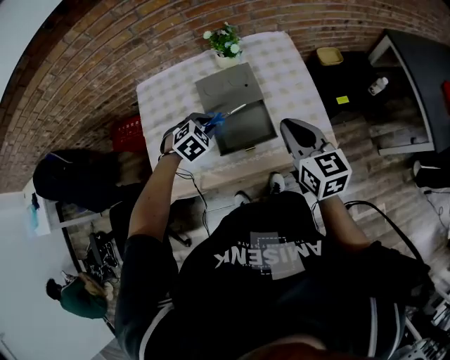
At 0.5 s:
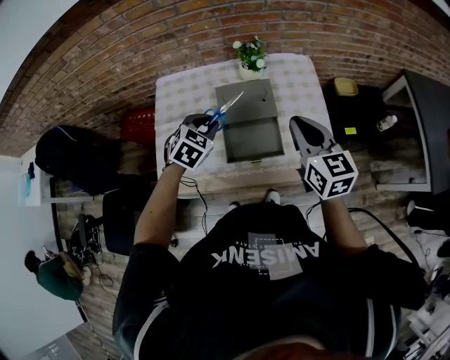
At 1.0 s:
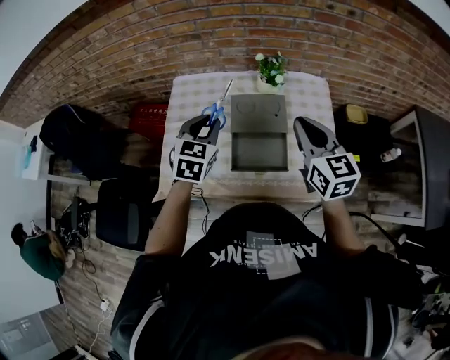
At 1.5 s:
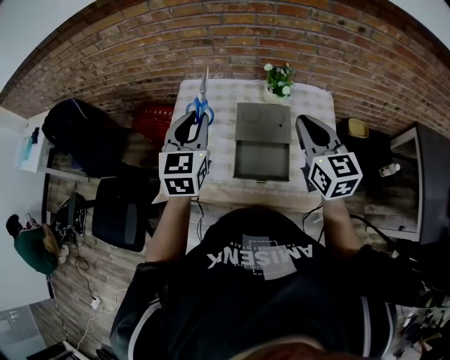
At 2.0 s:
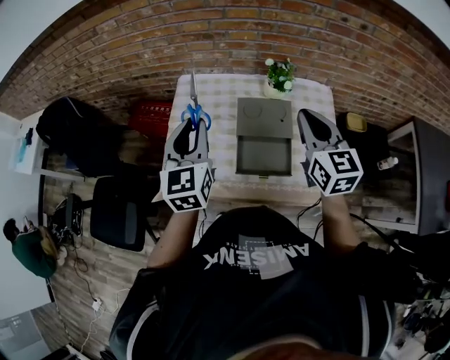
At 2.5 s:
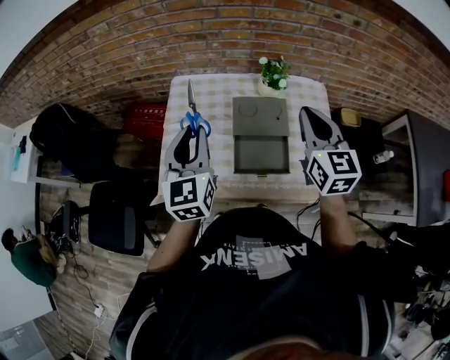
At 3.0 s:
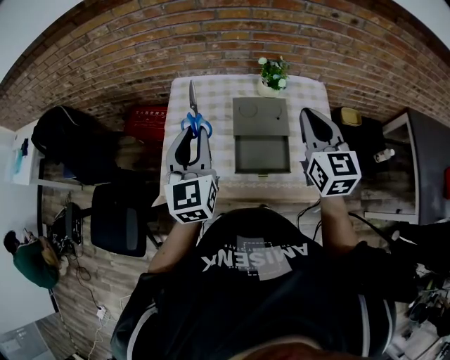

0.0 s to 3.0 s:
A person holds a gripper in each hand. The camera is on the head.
0.0 to 1.5 s: The right gripper shifts by some 15 cm. Meanwhile the left gripper moves upward, some 25 cm, and tilts its fingers roughly 50 degrees upward.
1.5 to 3.0 s: The left gripper ends up about 5 cm from where it was.

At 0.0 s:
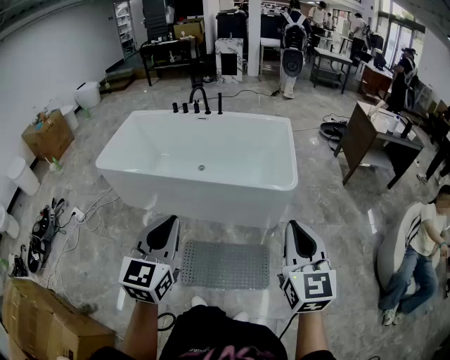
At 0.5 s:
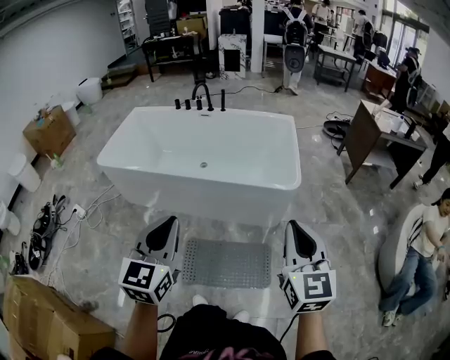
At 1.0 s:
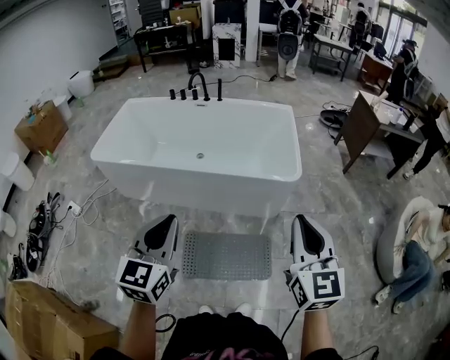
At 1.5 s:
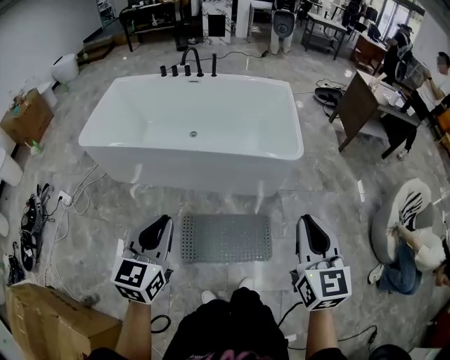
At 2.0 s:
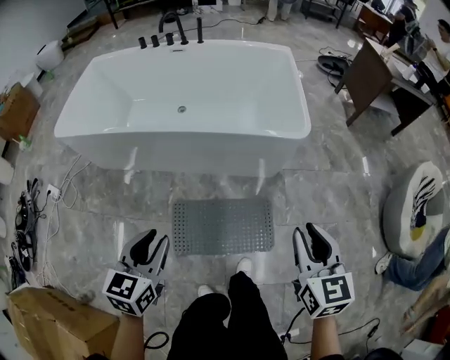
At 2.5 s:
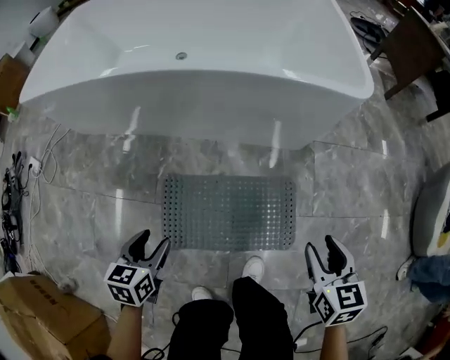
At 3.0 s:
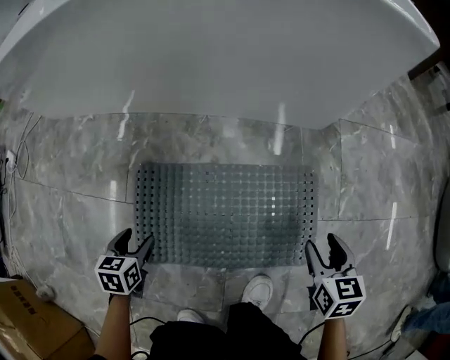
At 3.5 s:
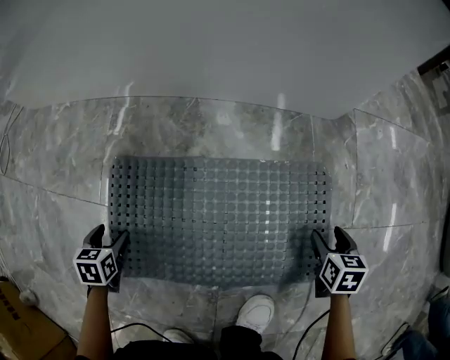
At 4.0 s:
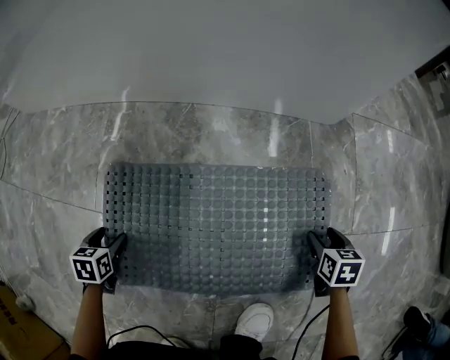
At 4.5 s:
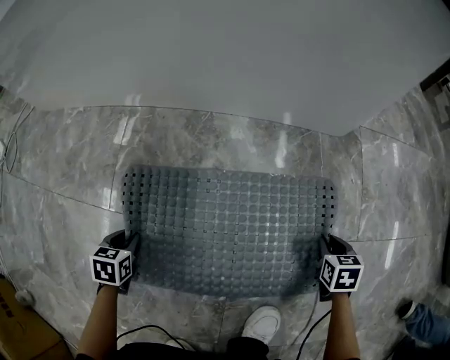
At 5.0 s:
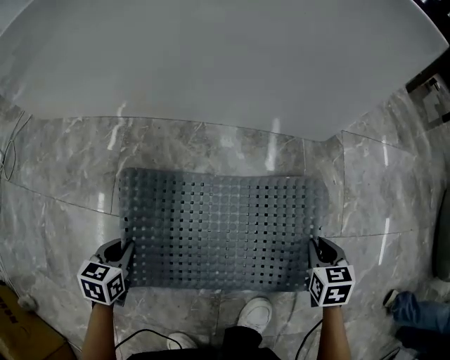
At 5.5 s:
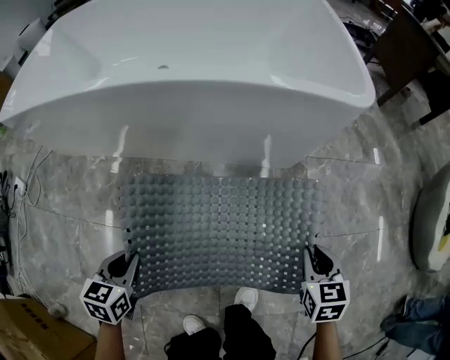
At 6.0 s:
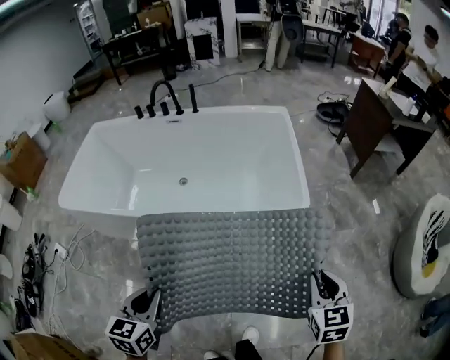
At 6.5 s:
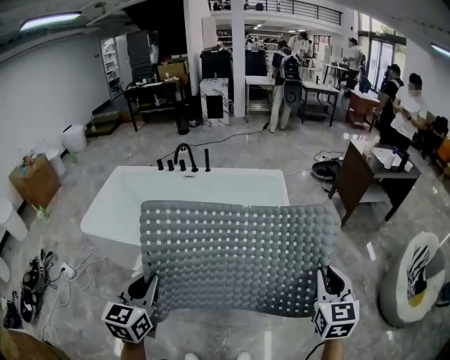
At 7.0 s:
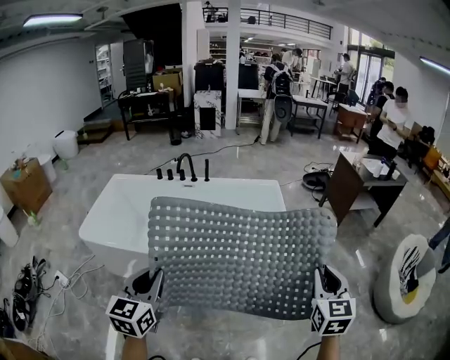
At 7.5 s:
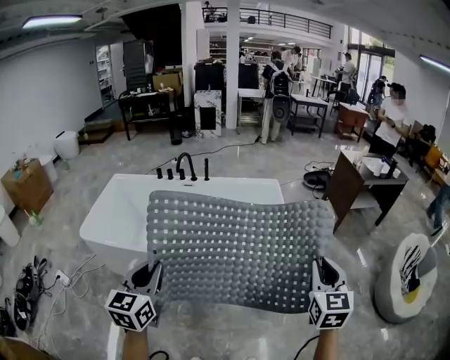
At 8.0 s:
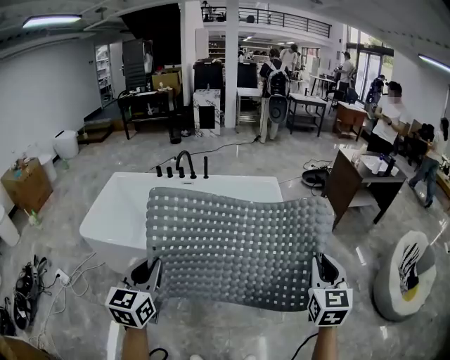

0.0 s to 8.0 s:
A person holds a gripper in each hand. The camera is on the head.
0.0 to 2.0 s: Both grippers move downward, some 25 cm. The left gripper swivels about 30 degrees. Meanwhile the right gripper swivels approximately 20 degrees.
2.0 to 4.0 s: Both grippers travel together downward, approximately 80 cm. The left gripper tips its fingers downward by some 40 degrees, and opens up. The right gripper tilts its fingers about 40 degrees downward, and opens up.
4.0 to 6.0 s: The grippers both shift upward by roughly 80 cm. The right gripper turns by approximately 30 degrees, and closes, while the left gripper angles its fingers upward, by roughly 30 degrees, and closes.
6.0 to 8.0 s: The two grippers go approximately 25 cm upward. The left gripper swivels approximately 30 degrees; the right gripper rotates roughly 30 degrees.

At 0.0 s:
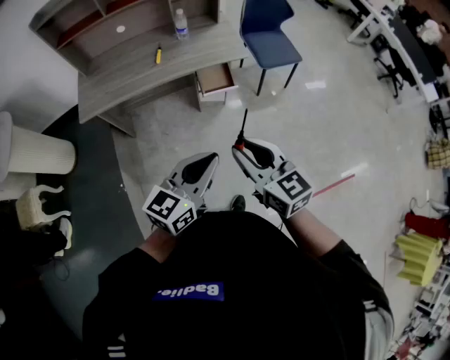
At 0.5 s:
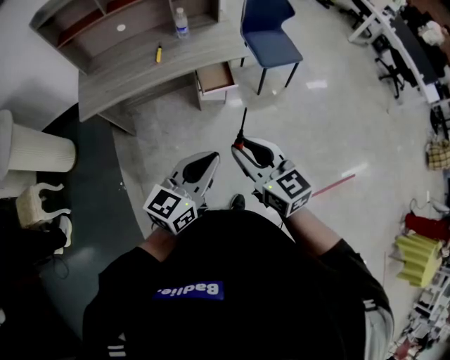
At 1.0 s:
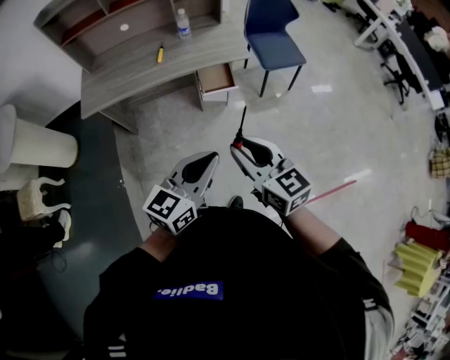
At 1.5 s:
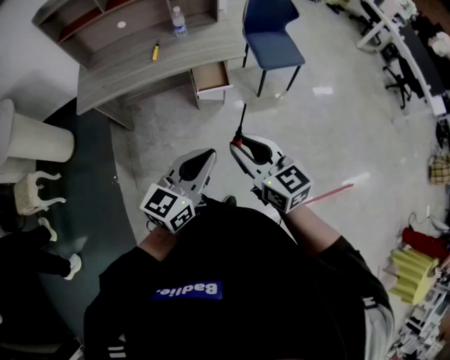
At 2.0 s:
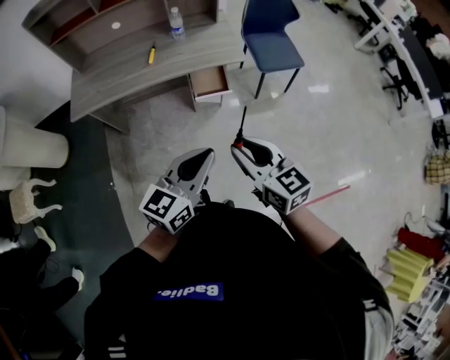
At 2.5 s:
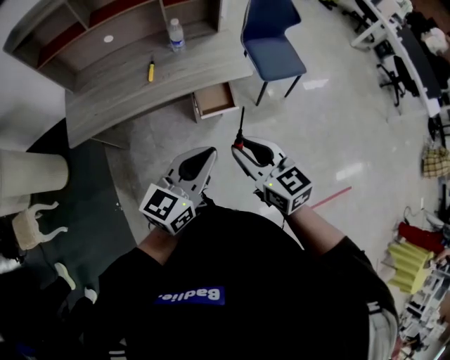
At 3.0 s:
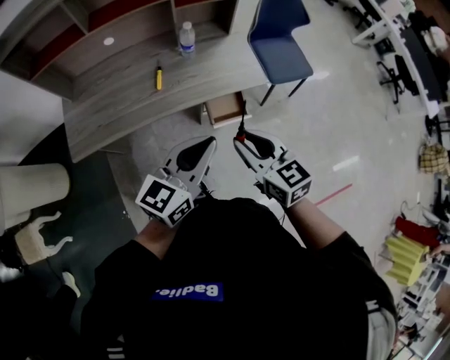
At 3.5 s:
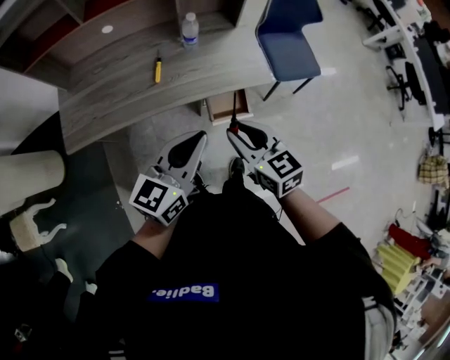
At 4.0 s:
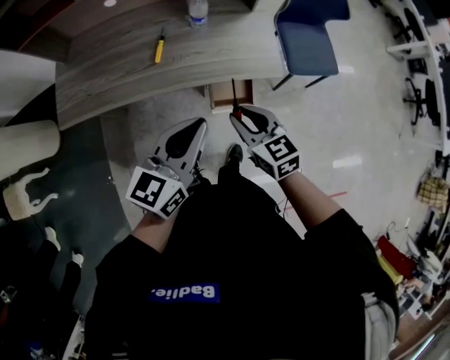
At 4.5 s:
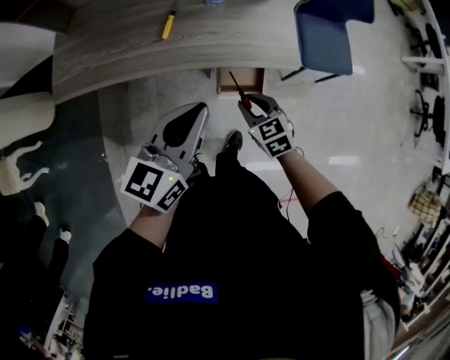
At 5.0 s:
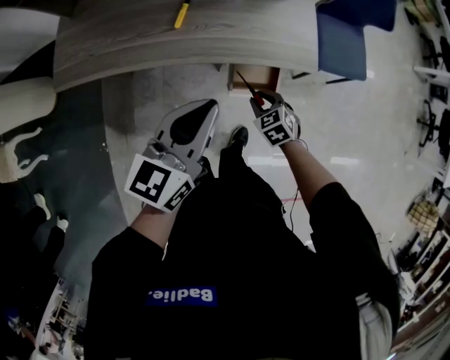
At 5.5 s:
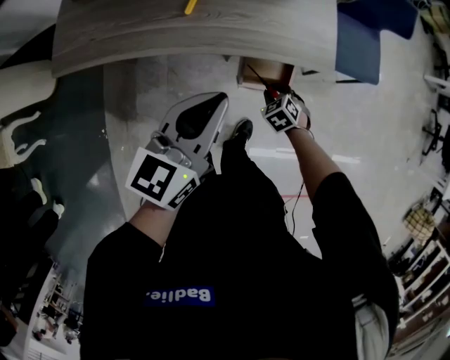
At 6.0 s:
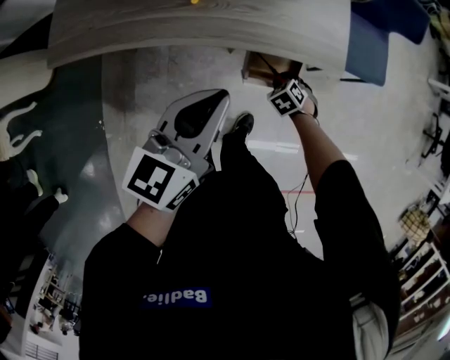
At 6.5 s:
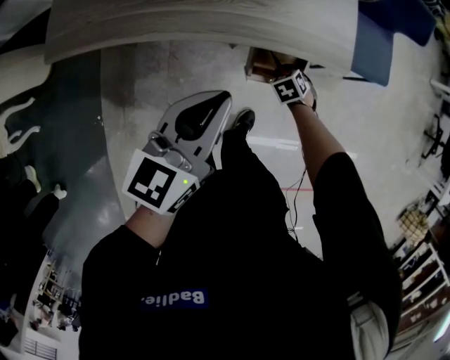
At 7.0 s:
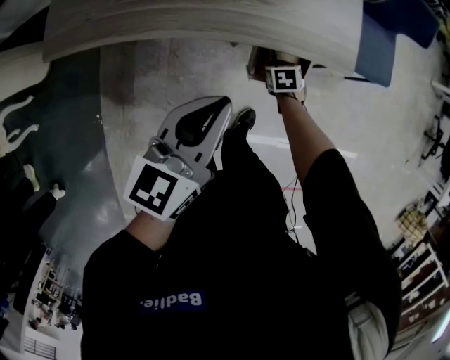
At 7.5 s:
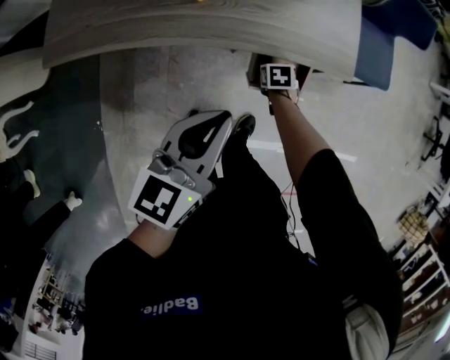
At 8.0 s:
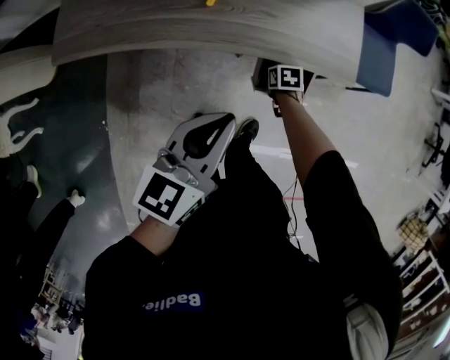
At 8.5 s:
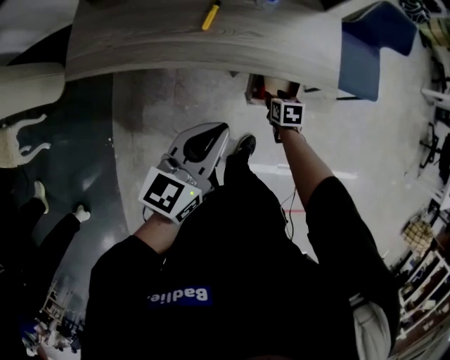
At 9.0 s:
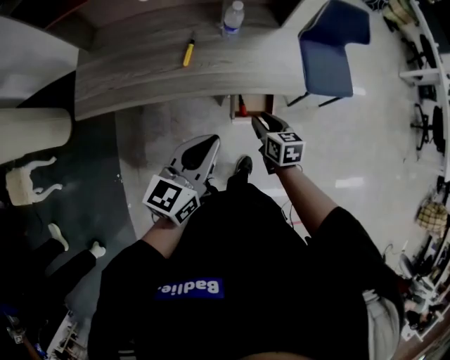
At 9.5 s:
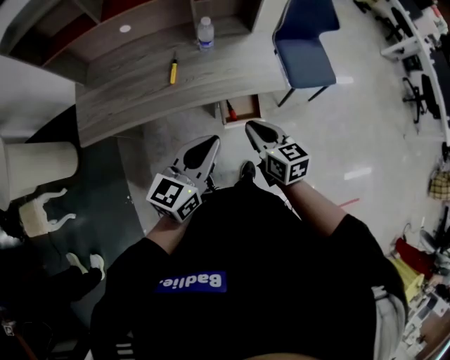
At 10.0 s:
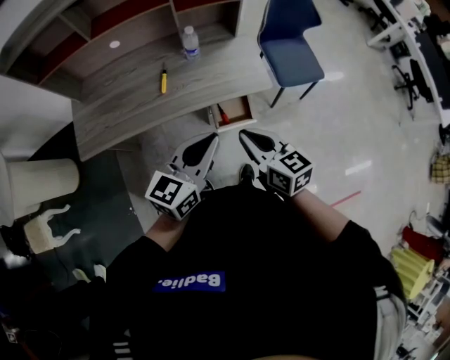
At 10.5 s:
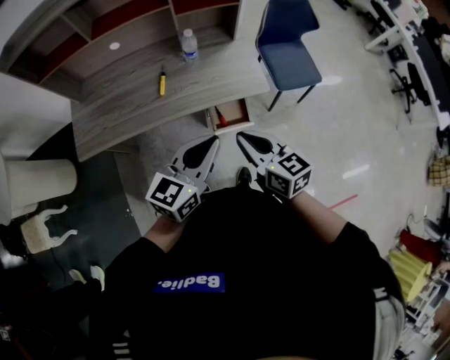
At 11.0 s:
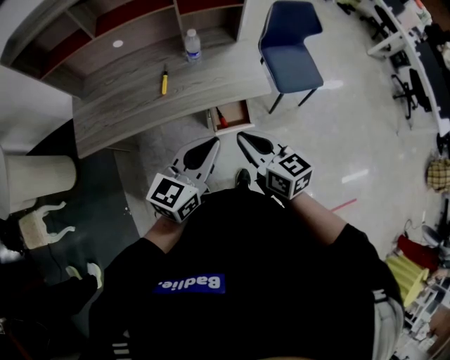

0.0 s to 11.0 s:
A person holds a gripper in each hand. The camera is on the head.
0.0 to 2.0 s: The right gripper goes roughly 10 cm forward and to the right, while the left gripper travels forward by some 5 cm.
2.0 to 3.5 s: Both grippers move forward and to the left, roughly 30 cm.
3.5 to 5.5 s: The left gripper goes approximately 15 cm downward and forward, while the right gripper heads downward, covering some 40 cm, and tilts its fingers approximately 50 degrees downward.
5.5 to 7.5 s: Both grippers travel together downward, roughly 5 cm. The right gripper changes its angle by about 40 degrees.
7.5 to 9.0 s: The left gripper goes about 10 cm upward; the right gripper moves upward, some 25 cm, and angles its fingers upward, by about 30 degrees.
9.0 to 11.0 s: The right gripper goes some 25 cm upward and backward, swivels about 20 degrees, and closes up. Meanwhile the left gripper shifts about 10 cm to the right and upward.

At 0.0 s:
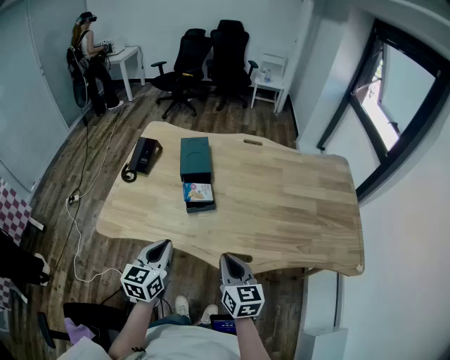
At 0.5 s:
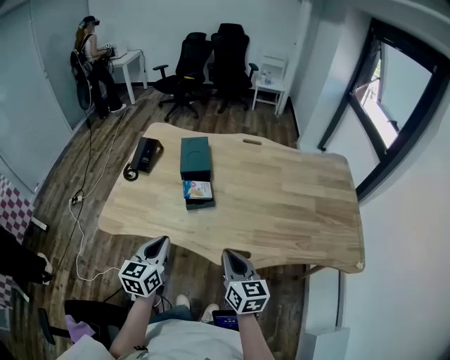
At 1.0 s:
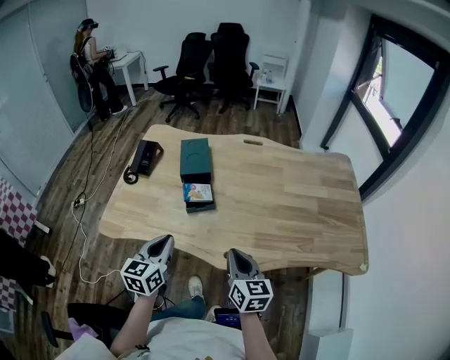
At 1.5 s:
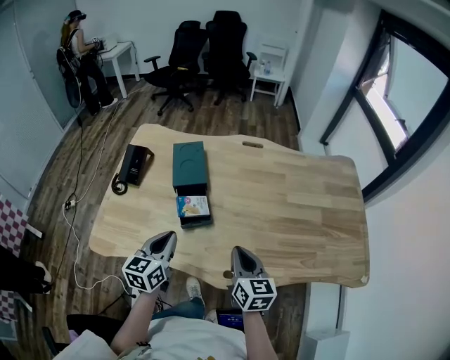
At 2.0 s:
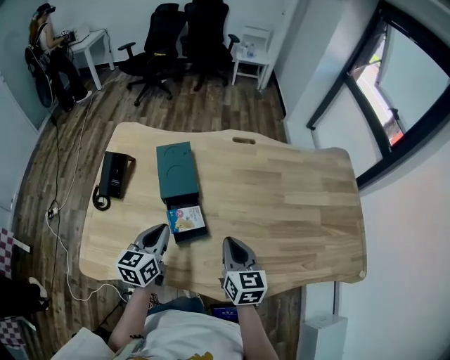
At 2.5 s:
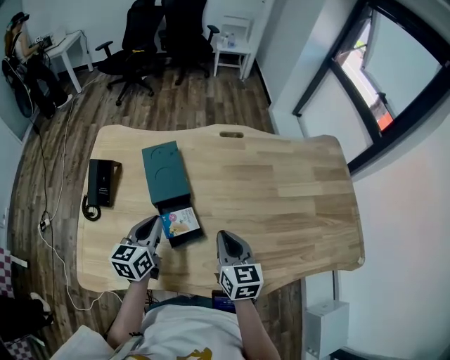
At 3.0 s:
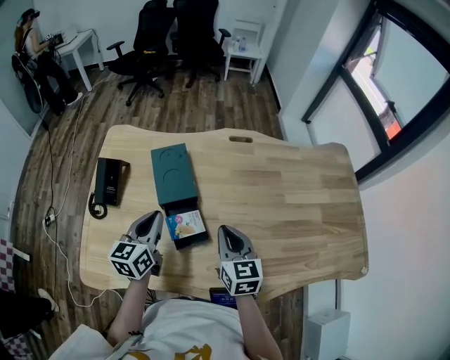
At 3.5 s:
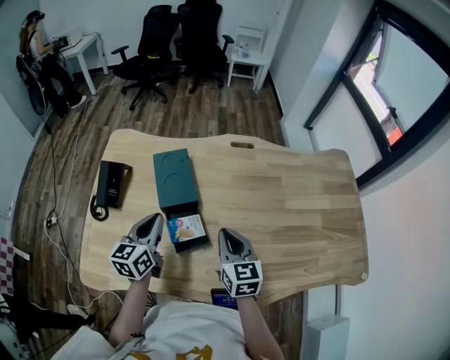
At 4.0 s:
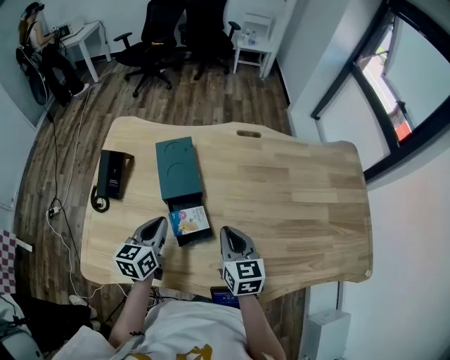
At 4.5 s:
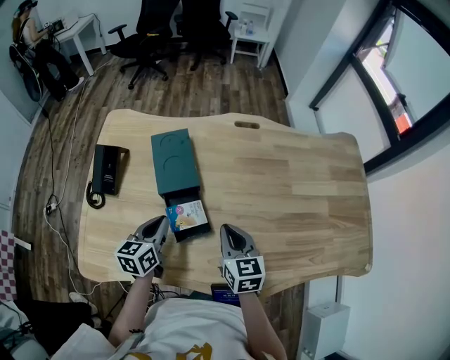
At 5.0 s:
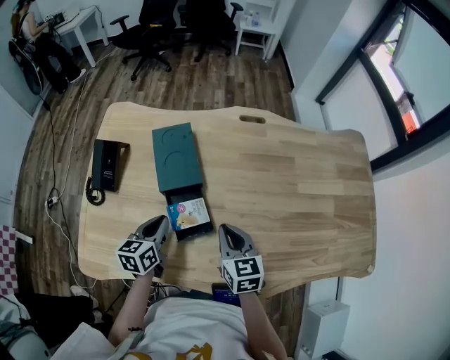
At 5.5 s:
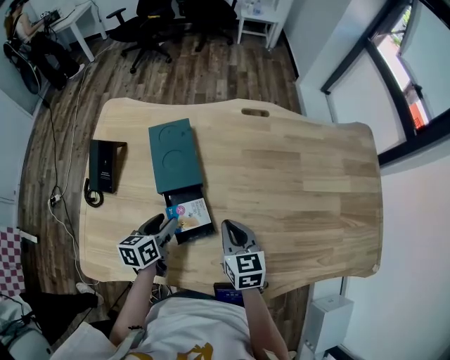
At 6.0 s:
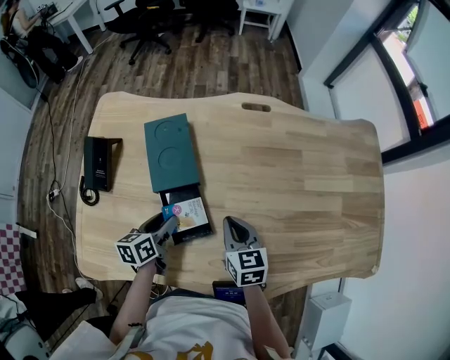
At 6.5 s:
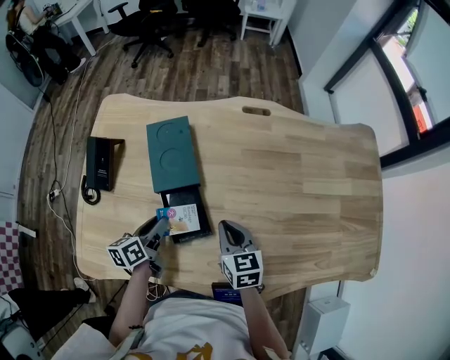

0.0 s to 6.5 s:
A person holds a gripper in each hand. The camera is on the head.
0.0 to 2.0 s: The two grippers go some 20 cm forward.
2.0 to 4.5 s: The left gripper travels downward by approximately 5 cm. Meanwhile the right gripper ends up some 5 cm from where it was.
4.5 to 6.5 s: Both grippers move downward, some 5 cm. The left gripper swivels roughly 20 degrees, and opens.
